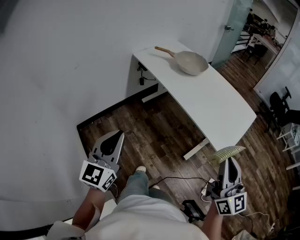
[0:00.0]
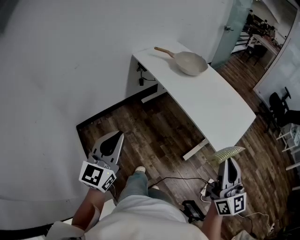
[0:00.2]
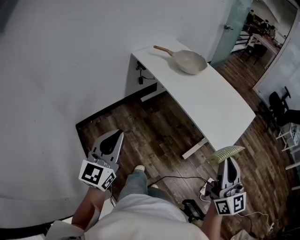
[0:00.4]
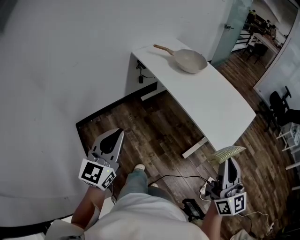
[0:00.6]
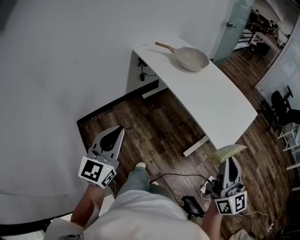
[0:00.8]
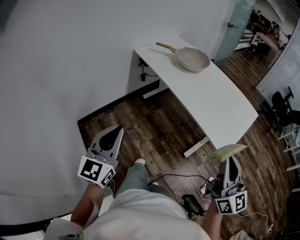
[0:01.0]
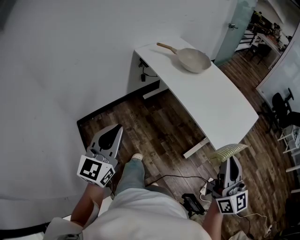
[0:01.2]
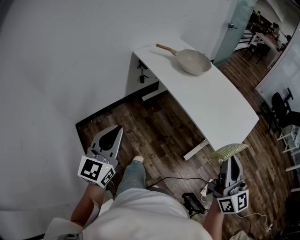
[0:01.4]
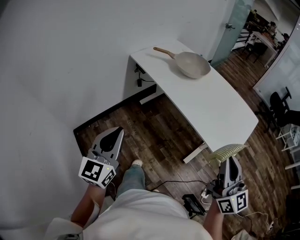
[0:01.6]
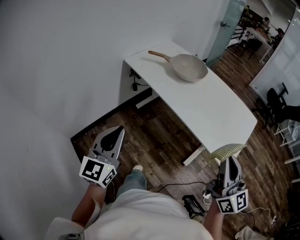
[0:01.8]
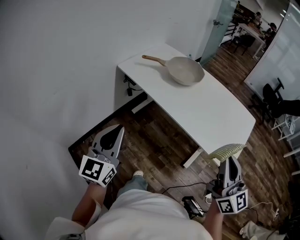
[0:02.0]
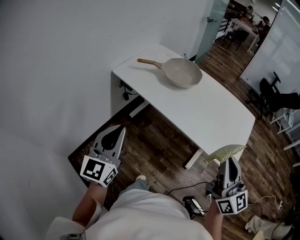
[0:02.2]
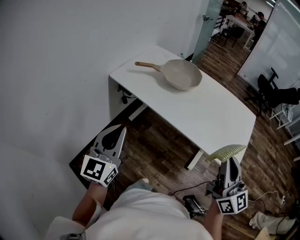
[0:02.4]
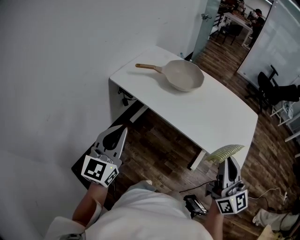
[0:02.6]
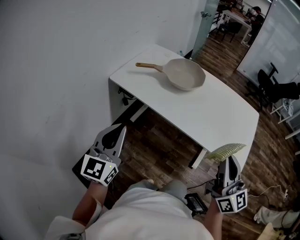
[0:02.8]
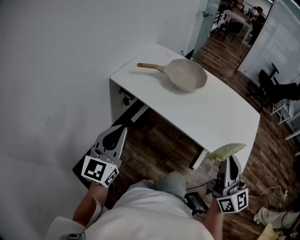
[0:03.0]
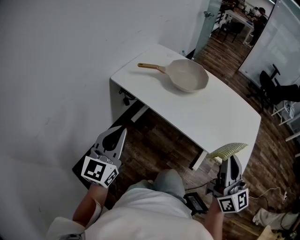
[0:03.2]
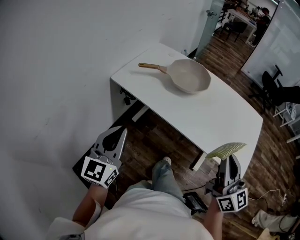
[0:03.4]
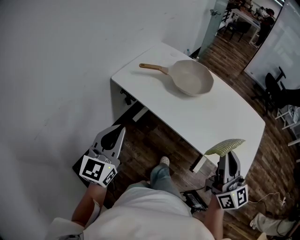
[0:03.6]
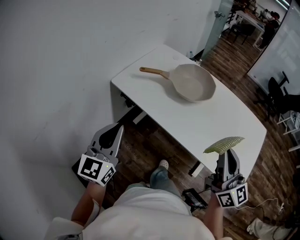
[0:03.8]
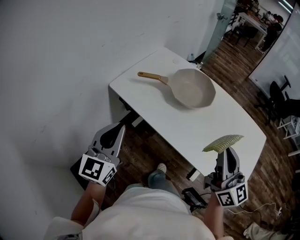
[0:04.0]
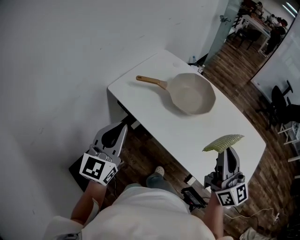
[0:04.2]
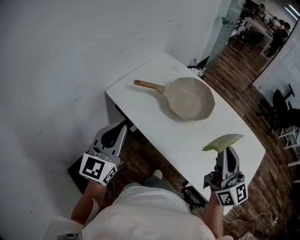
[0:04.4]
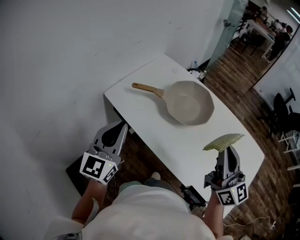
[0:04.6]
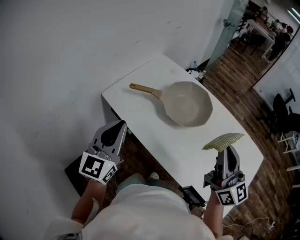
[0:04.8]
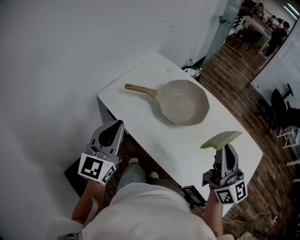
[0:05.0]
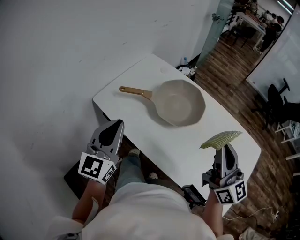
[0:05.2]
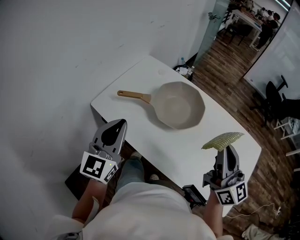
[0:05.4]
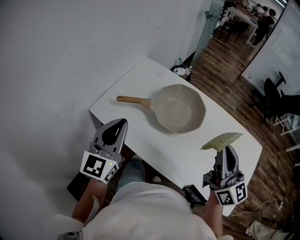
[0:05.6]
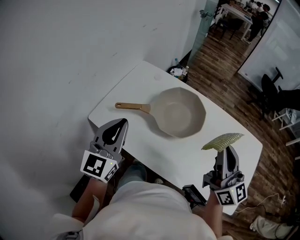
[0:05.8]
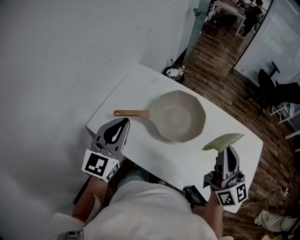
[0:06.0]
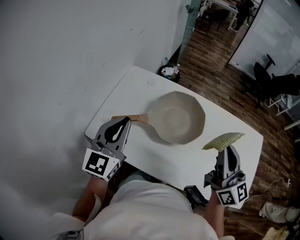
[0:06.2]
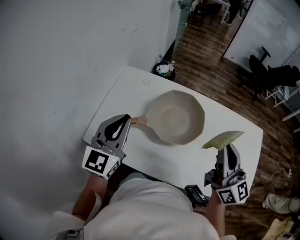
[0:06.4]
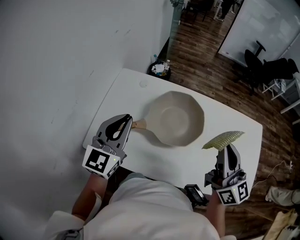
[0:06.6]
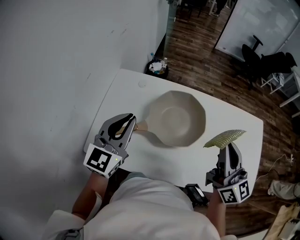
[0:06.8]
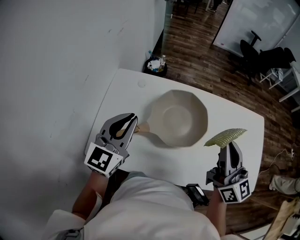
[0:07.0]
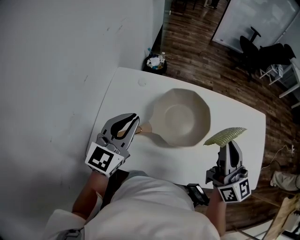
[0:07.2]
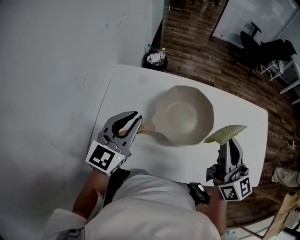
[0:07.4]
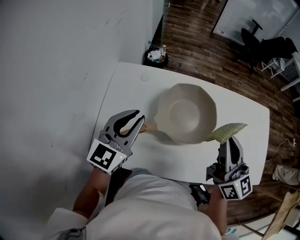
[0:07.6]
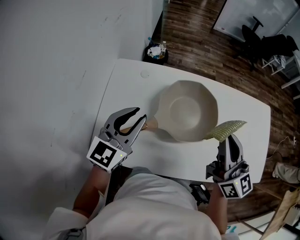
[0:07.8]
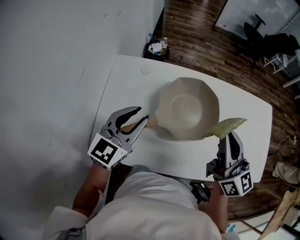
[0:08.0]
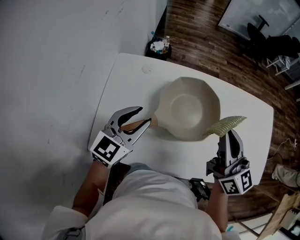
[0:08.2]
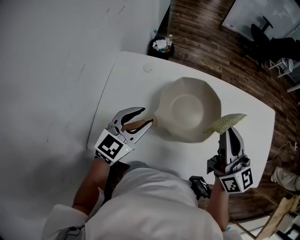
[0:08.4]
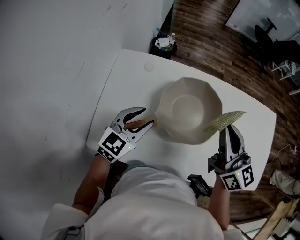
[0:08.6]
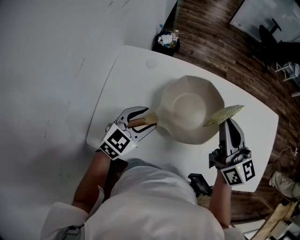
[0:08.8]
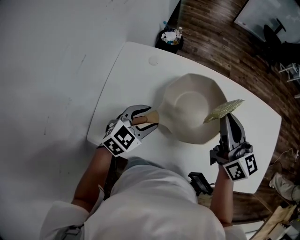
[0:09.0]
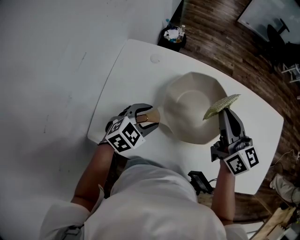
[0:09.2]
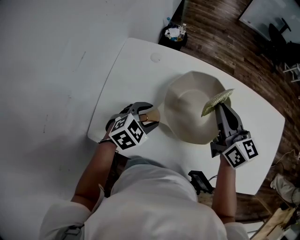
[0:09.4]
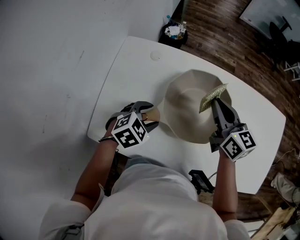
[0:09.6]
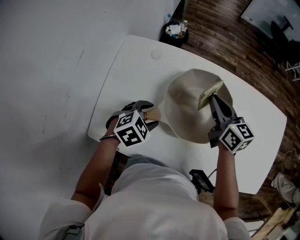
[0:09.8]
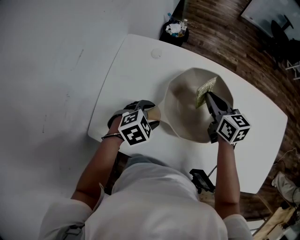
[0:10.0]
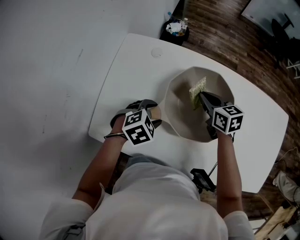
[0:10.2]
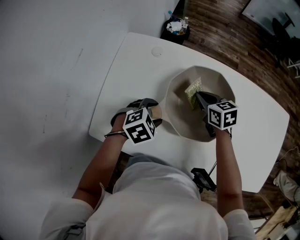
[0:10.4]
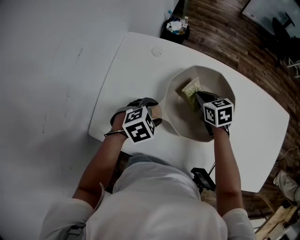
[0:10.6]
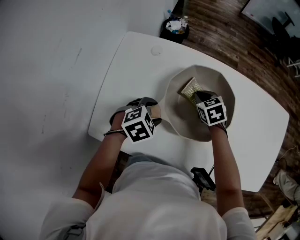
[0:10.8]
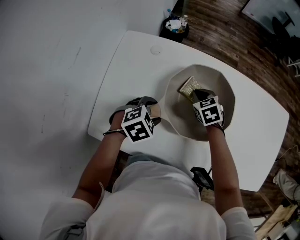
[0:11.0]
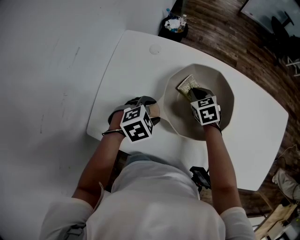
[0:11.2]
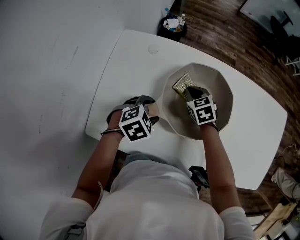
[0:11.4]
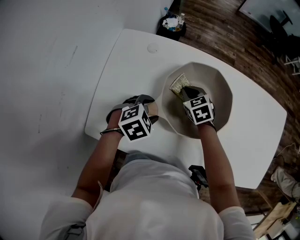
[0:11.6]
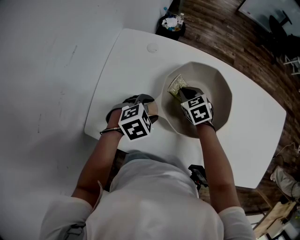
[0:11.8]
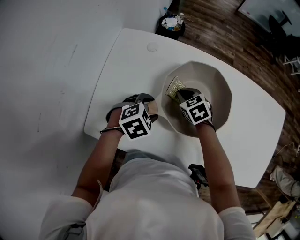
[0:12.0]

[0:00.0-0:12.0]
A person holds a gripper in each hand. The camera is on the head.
0:00.0 to 0:01.6: The two grippers go approximately 10 cm forward.
0:01.6 to 0:03.0: Both grippers travel together forward and to the left, some 25 cm.
0:03.0 to 0:04.4: The grippers both shift forward by roughly 25 cm.
0:04.4 to 0:06.0: The right gripper moves forward, roughly 10 cm. Meanwhile the left gripper heads forward, covering approximately 20 cm.
0:06.0 to 0:07.6: The left gripper goes about 15 cm forward and downward, and rotates some 30 degrees; the right gripper moves to the left and forward, some 10 cm.
0:07.6 to 0:09.0: The right gripper goes roughly 10 cm forward and downward; the left gripper is displaced downward by about 15 cm, changes its angle by roughly 30 degrees, and opens.
0:09.0 to 0:10.4: The right gripper travels downward by roughly 25 cm, and angles its fingers downward, by about 40 degrees, while the left gripper moves downward, approximately 10 cm, and swivels approximately 30 degrees.
0:10.4 to 0:12.0: The right gripper is displaced to the left and downward by about 5 cm, and changes its angle by approximately 20 degrees.

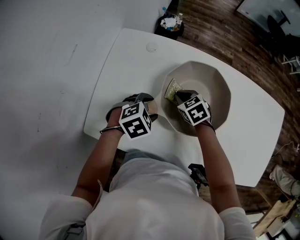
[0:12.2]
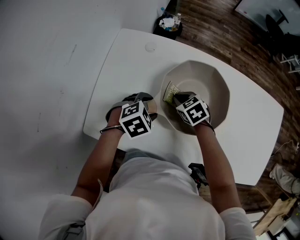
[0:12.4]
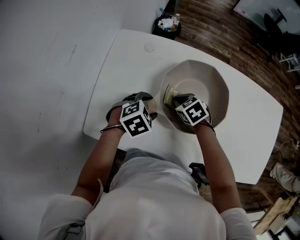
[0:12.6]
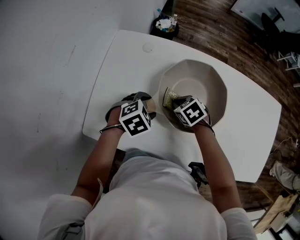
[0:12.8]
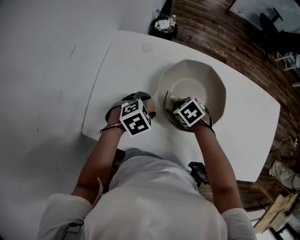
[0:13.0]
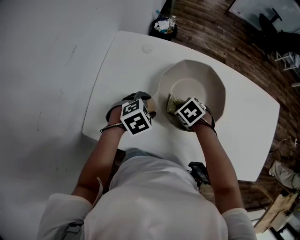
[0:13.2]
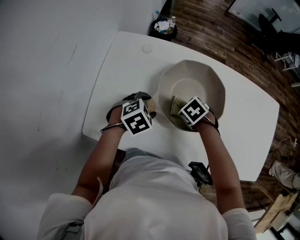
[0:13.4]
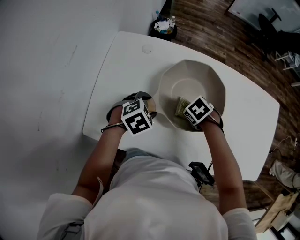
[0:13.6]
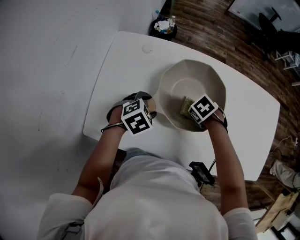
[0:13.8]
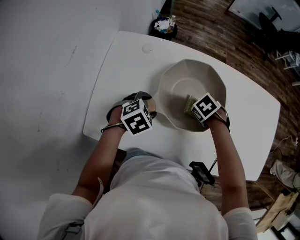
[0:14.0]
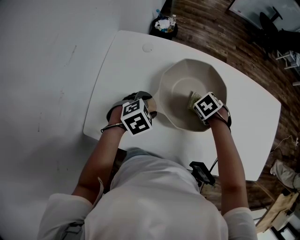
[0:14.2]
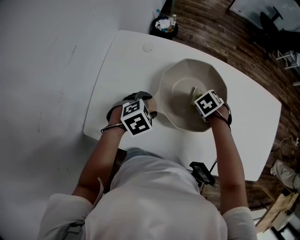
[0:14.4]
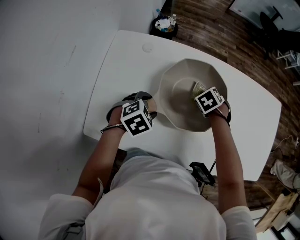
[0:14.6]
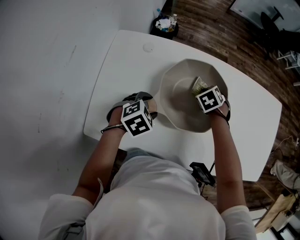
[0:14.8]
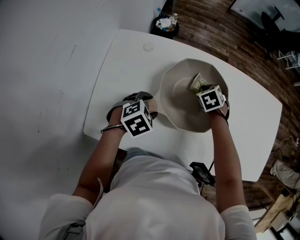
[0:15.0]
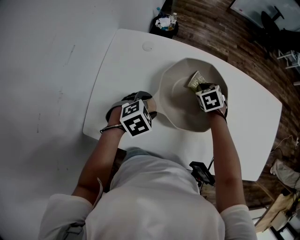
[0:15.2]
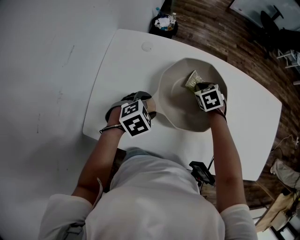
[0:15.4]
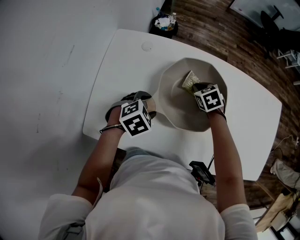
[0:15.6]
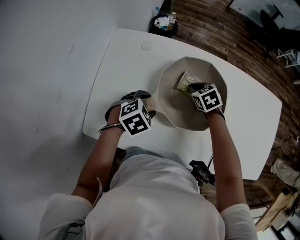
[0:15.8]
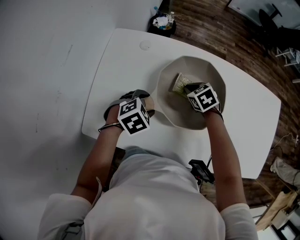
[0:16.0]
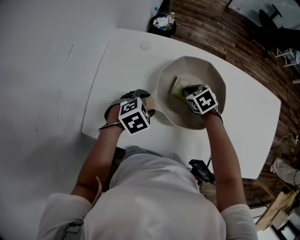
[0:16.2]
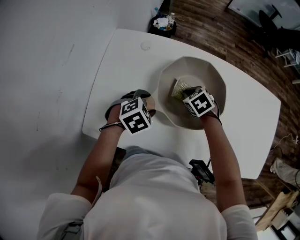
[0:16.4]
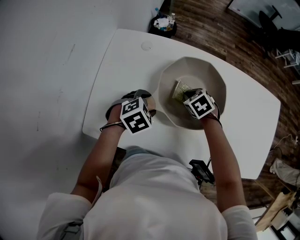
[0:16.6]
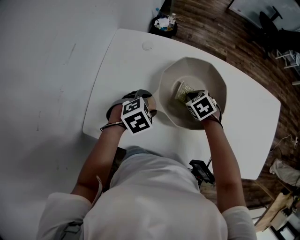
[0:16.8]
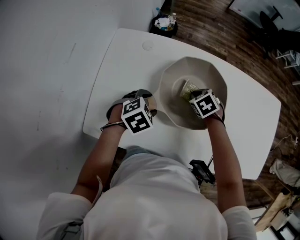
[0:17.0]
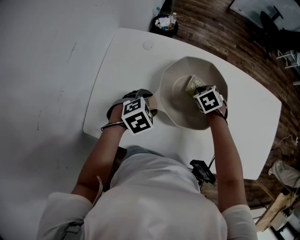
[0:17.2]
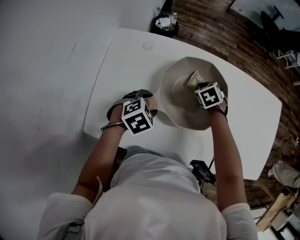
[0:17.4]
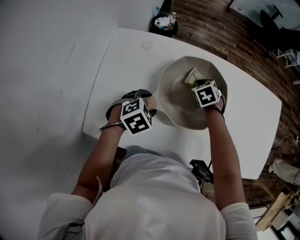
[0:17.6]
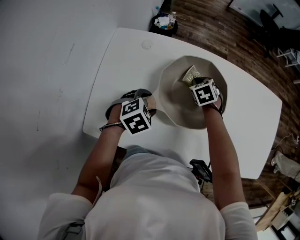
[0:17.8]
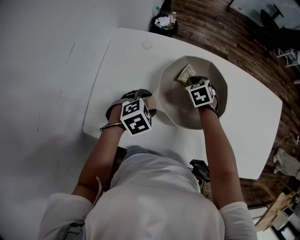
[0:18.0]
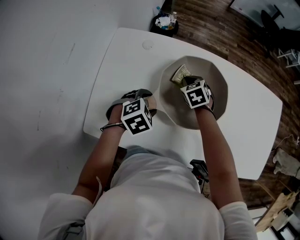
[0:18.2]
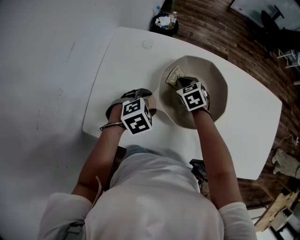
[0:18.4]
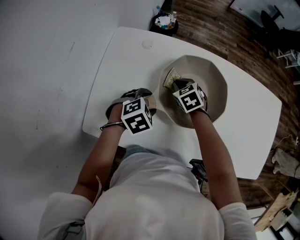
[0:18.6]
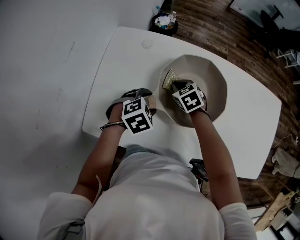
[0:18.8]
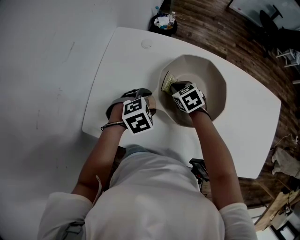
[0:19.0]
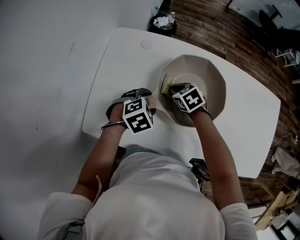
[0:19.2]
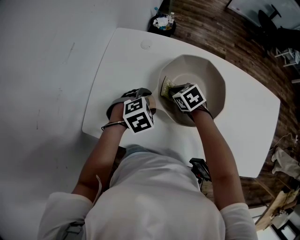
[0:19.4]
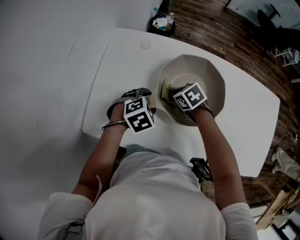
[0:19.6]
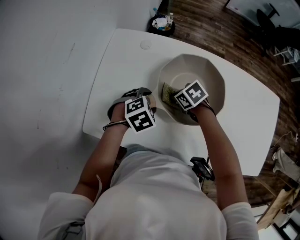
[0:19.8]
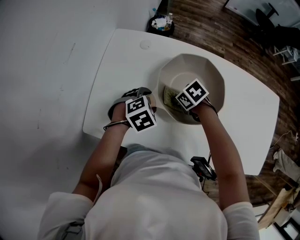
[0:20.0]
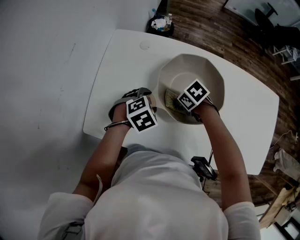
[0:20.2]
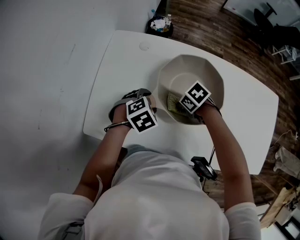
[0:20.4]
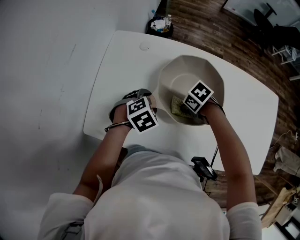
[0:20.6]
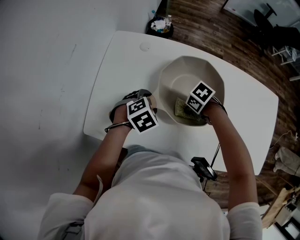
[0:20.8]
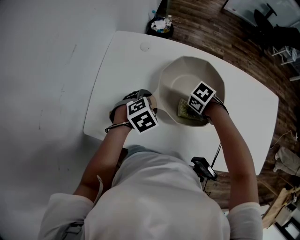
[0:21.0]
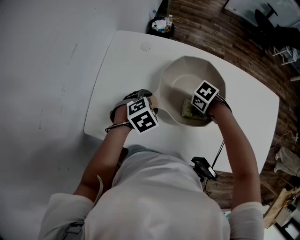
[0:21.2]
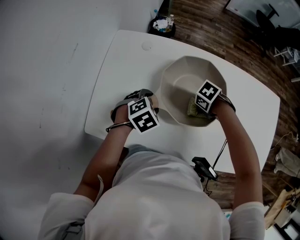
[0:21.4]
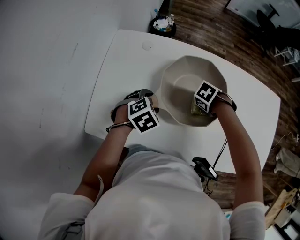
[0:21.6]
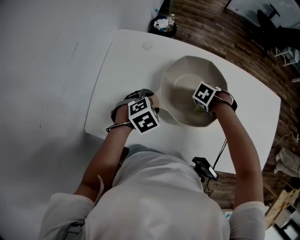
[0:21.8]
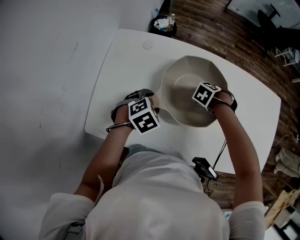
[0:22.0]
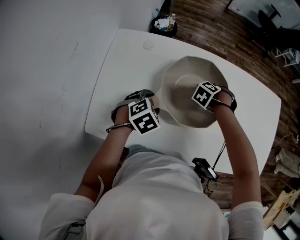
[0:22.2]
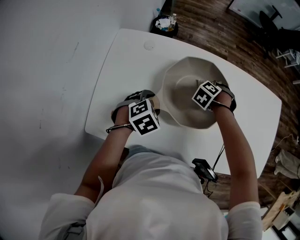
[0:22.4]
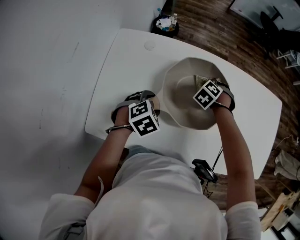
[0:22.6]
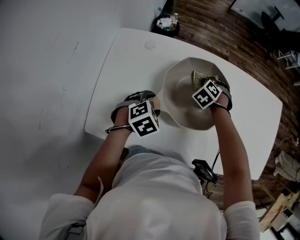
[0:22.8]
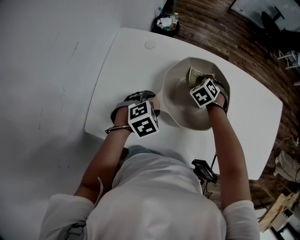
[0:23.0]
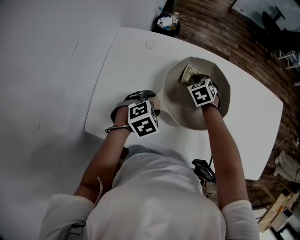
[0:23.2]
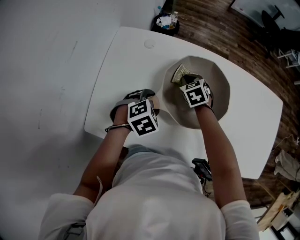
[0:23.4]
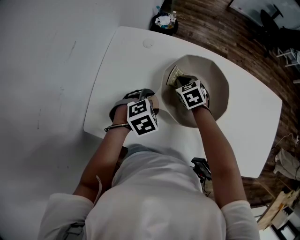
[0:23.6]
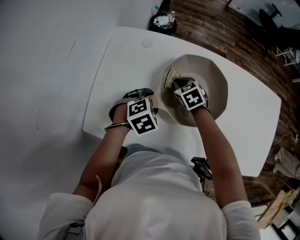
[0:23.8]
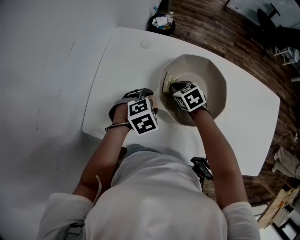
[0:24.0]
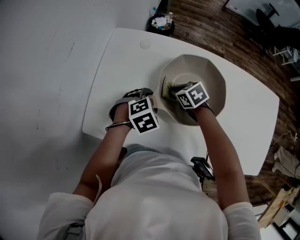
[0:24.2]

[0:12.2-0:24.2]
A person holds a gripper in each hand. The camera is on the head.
0:12.2 to 0:13.8: The right gripper ends up approximately 10 cm from where it was, and rotates approximately 30 degrees.
0:13.8 to 0:15.2: The right gripper ends up roughly 10 cm from where it was, and rotates about 30 degrees.
0:15.2 to 0:16.6: The right gripper shifts some 10 cm backward and to the left.
0:16.6 to 0:18.2: The right gripper moves forward, roughly 5 cm.
0:18.2 to 0:19.8: The right gripper changes place by approximately 10 cm, and swivels approximately 30 degrees.
0:19.8 to 0:21.2: The right gripper moves roughly 10 cm, and changes its angle by about 30 degrees.
0:21.2 to 0:22.6: The right gripper changes place by some 15 cm, and rotates approximately 50 degrees.
0:22.6 to 0:24.2: The right gripper moves approximately 15 cm, and swivels some 50 degrees.
